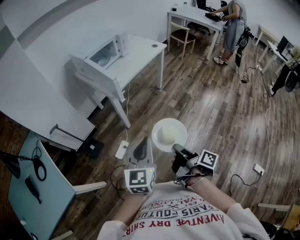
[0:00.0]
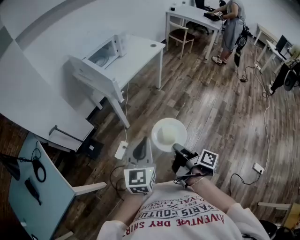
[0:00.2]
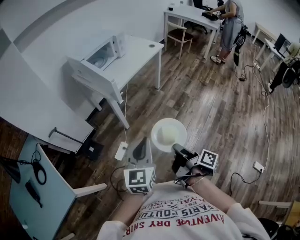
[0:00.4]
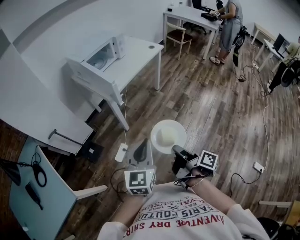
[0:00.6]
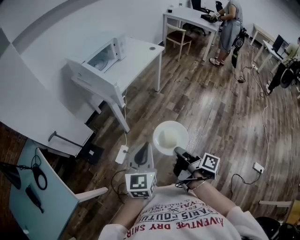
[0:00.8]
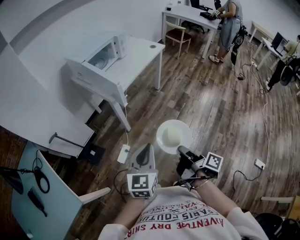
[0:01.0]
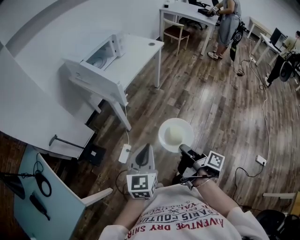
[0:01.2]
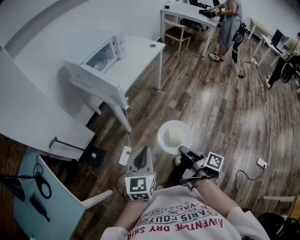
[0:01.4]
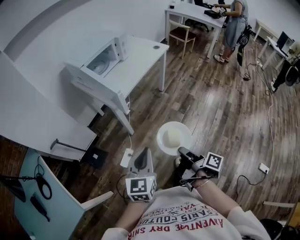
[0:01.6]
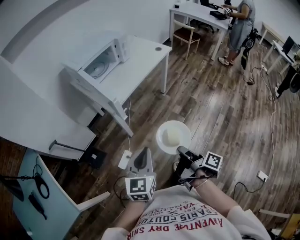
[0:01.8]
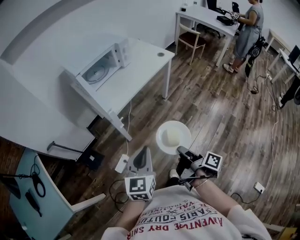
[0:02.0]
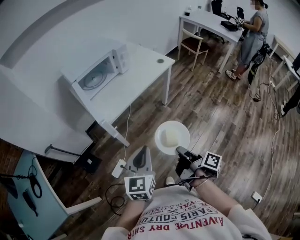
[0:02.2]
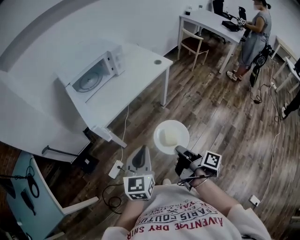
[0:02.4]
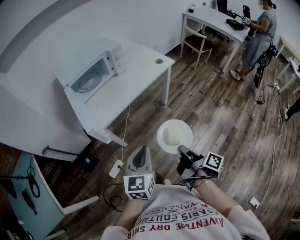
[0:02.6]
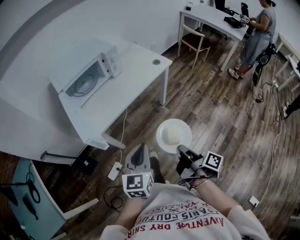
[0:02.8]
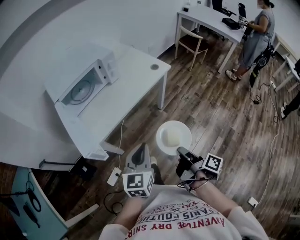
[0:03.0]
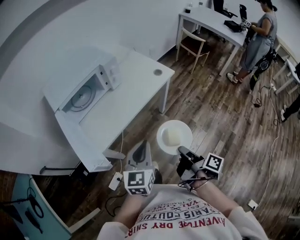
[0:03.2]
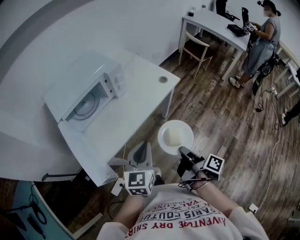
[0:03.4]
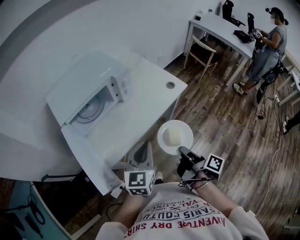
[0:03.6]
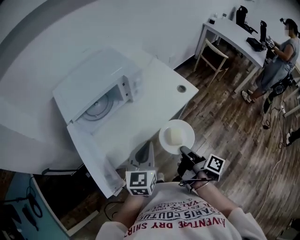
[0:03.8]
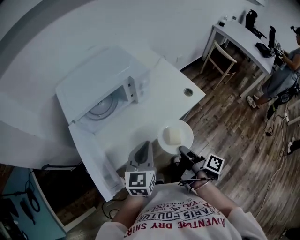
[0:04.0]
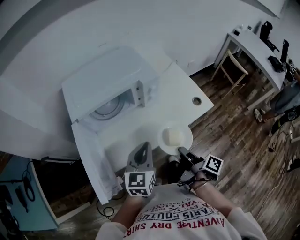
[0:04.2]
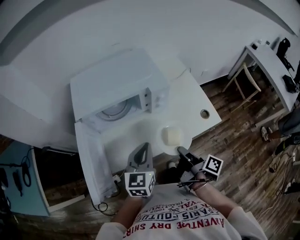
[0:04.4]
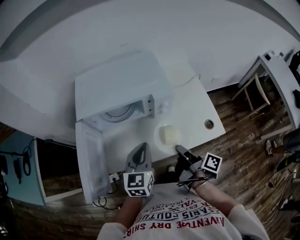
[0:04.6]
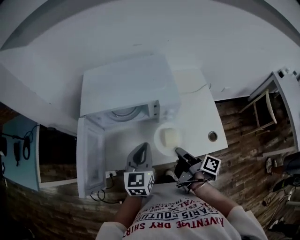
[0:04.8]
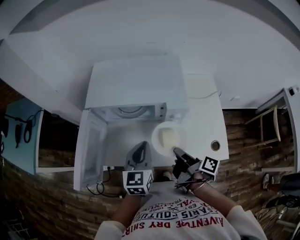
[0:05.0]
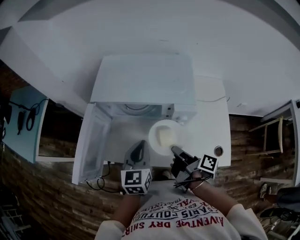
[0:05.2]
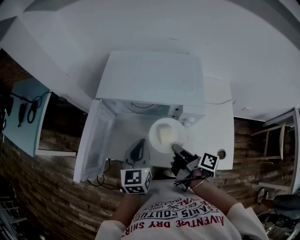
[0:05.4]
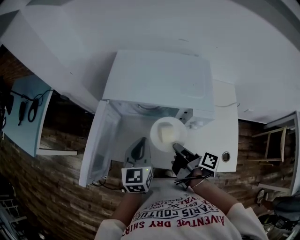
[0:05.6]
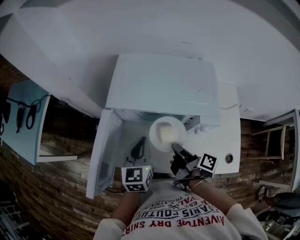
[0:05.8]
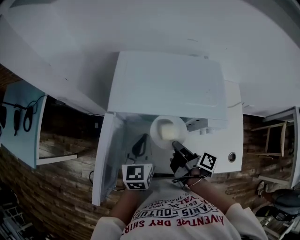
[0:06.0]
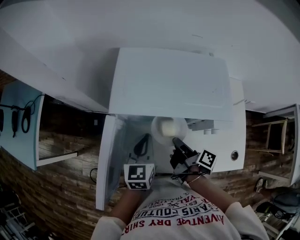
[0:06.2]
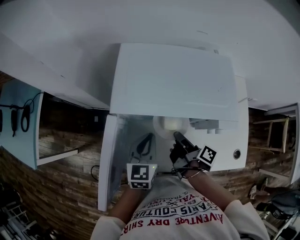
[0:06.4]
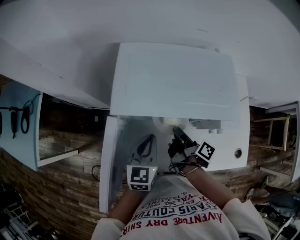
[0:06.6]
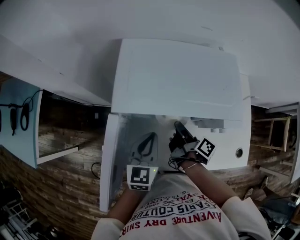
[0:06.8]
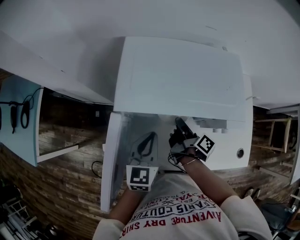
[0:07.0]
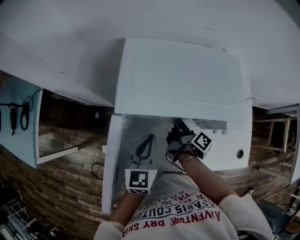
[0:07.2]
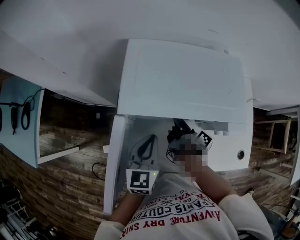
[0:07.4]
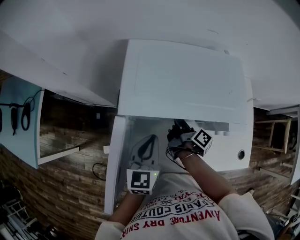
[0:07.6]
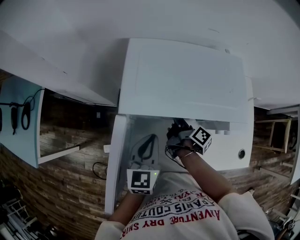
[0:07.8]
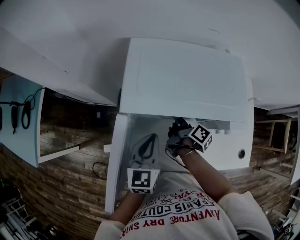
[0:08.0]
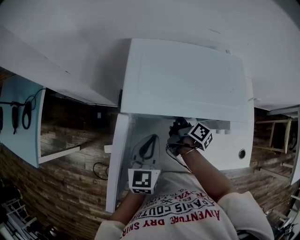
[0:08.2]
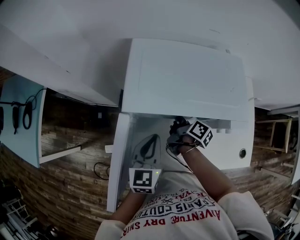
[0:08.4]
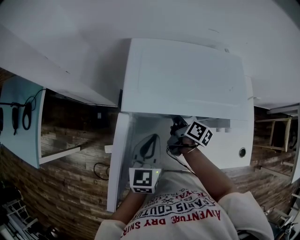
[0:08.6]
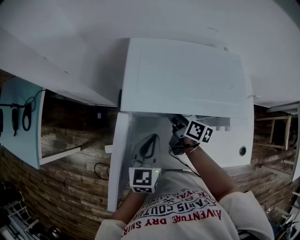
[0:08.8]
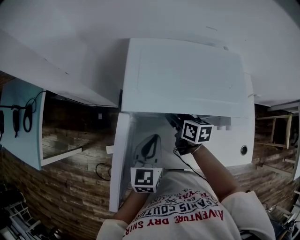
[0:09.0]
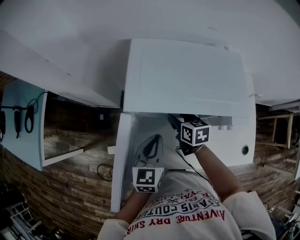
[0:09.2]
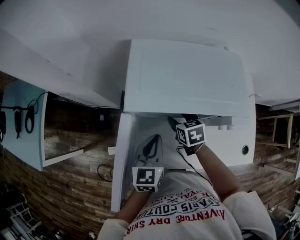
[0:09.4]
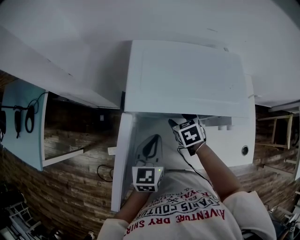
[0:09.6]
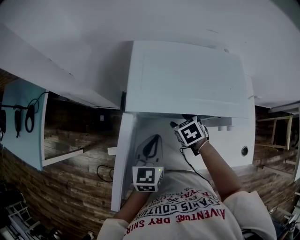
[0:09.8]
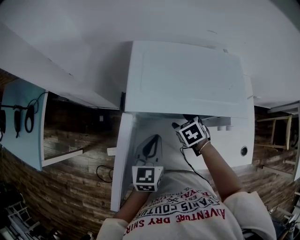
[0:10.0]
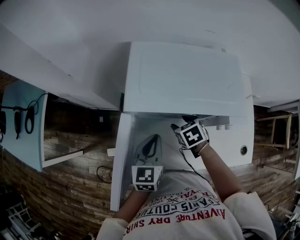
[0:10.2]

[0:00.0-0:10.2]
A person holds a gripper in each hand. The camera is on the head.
0:00.0 to 0:01.4: The left gripper moves about 10 cm.
0:01.4 to 0:03.0: The left gripper ends up approximately 40 cm from where it was.
0:03.0 to 0:04.4: The left gripper shifts by roughly 30 cm, and turns by some 20 degrees.
0:04.4 to 0:05.8: The left gripper shifts by about 15 cm, and changes its angle by some 30 degrees.
0:05.8 to 0:07.2: The left gripper changes place by roughly 5 cm.

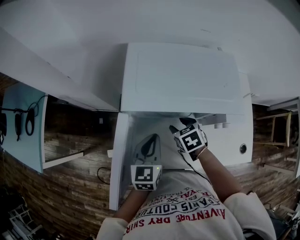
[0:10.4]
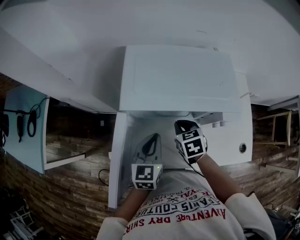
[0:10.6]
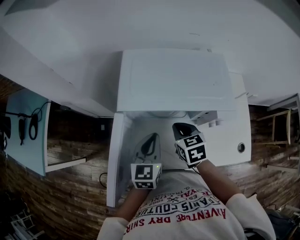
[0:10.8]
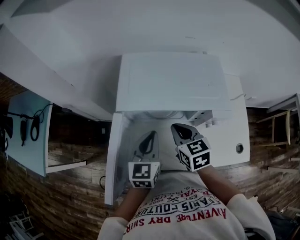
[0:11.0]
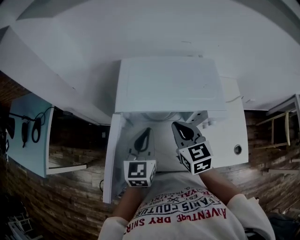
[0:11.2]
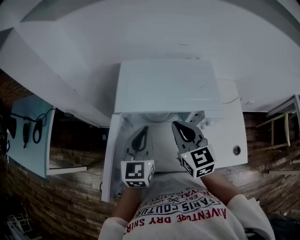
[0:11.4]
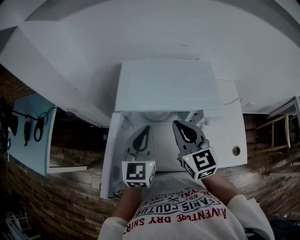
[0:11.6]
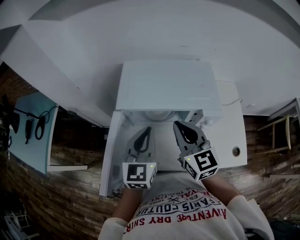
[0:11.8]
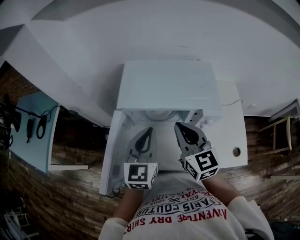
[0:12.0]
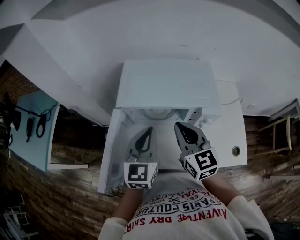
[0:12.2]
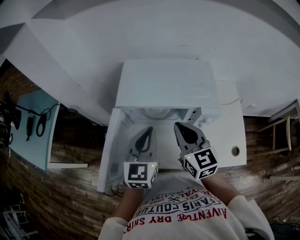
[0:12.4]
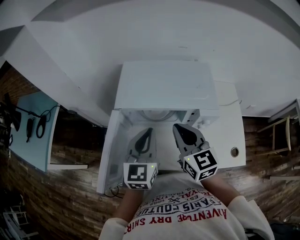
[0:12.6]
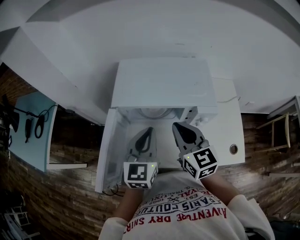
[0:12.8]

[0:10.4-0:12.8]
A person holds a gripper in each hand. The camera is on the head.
0:10.4 to 0:11.6: The left gripper heads upward, covering approximately 10 cm.

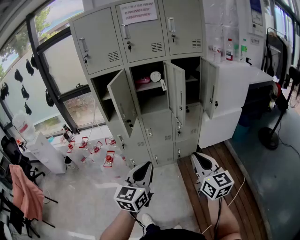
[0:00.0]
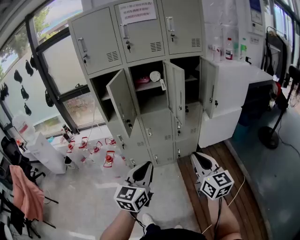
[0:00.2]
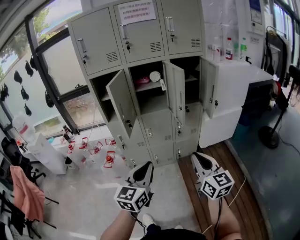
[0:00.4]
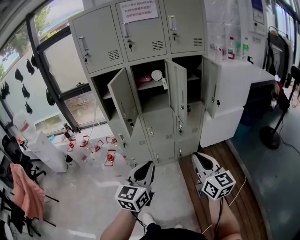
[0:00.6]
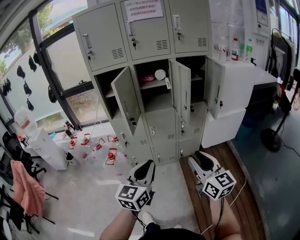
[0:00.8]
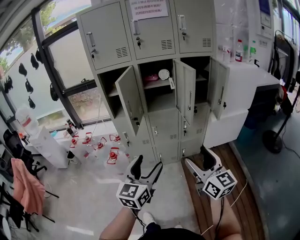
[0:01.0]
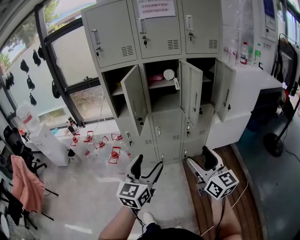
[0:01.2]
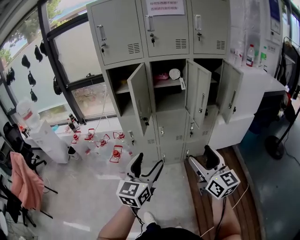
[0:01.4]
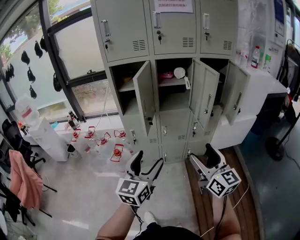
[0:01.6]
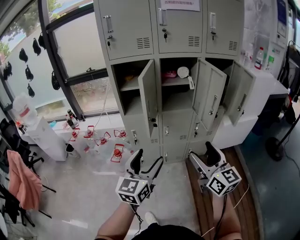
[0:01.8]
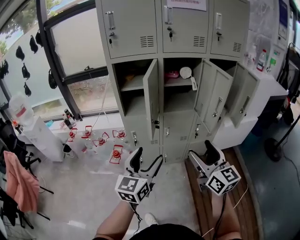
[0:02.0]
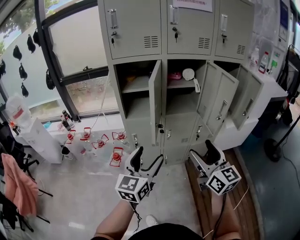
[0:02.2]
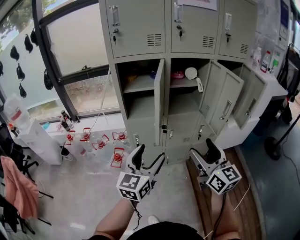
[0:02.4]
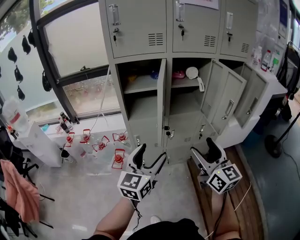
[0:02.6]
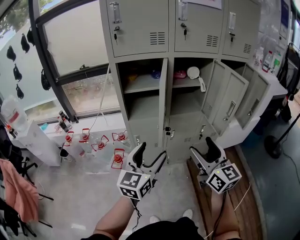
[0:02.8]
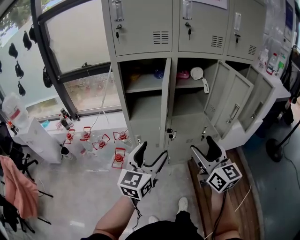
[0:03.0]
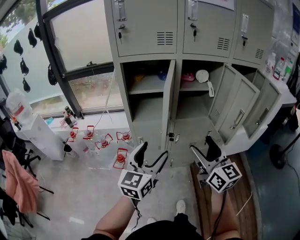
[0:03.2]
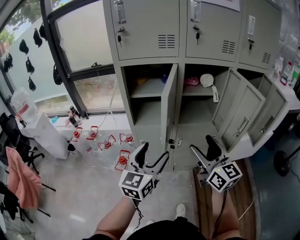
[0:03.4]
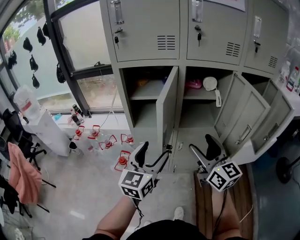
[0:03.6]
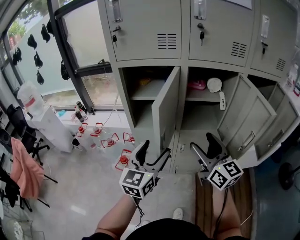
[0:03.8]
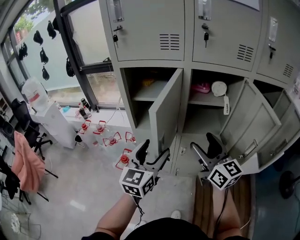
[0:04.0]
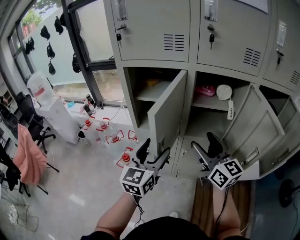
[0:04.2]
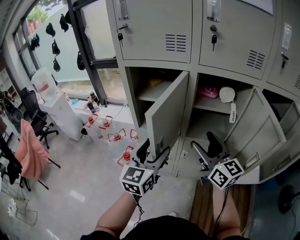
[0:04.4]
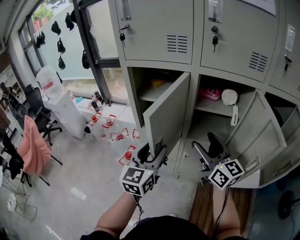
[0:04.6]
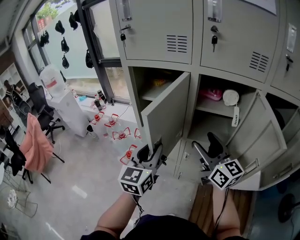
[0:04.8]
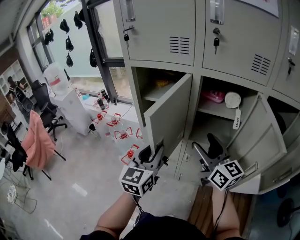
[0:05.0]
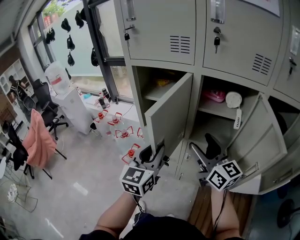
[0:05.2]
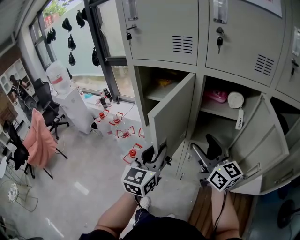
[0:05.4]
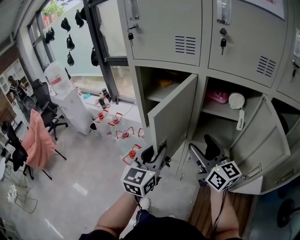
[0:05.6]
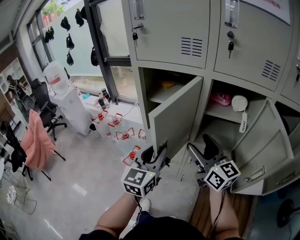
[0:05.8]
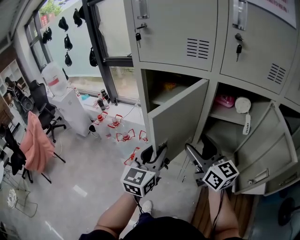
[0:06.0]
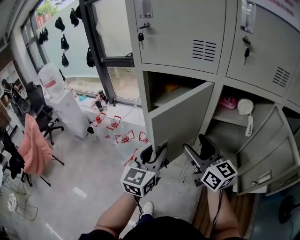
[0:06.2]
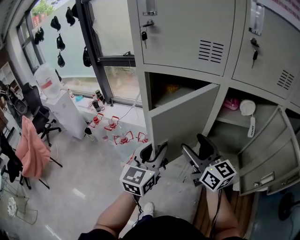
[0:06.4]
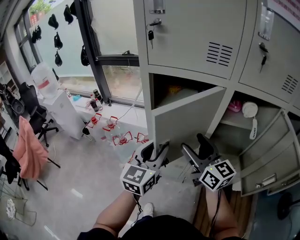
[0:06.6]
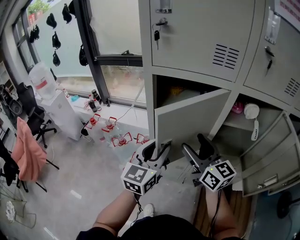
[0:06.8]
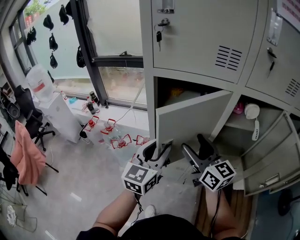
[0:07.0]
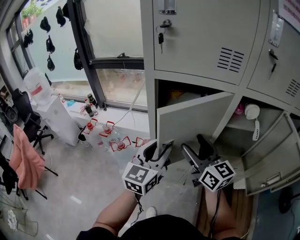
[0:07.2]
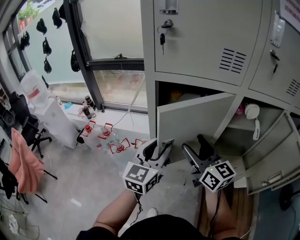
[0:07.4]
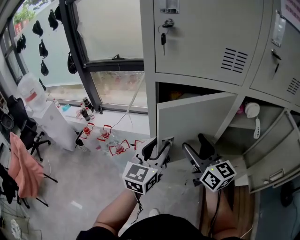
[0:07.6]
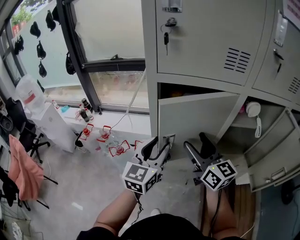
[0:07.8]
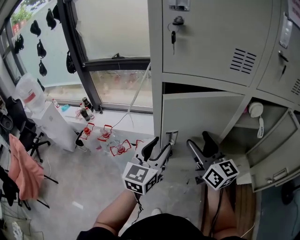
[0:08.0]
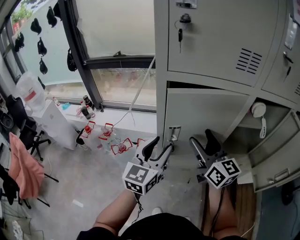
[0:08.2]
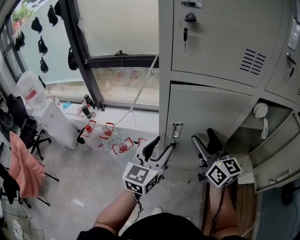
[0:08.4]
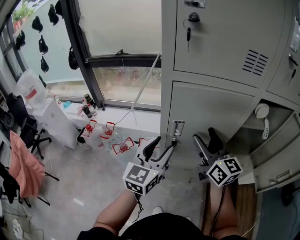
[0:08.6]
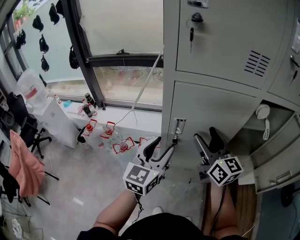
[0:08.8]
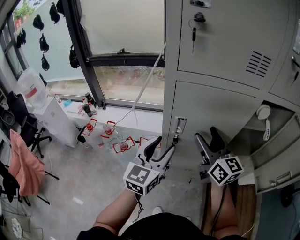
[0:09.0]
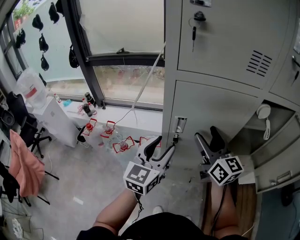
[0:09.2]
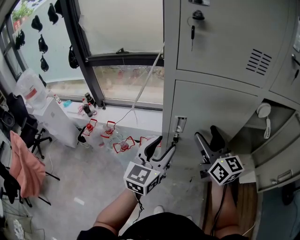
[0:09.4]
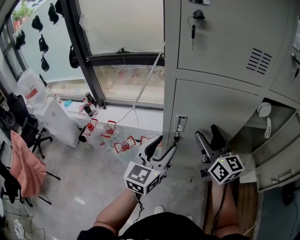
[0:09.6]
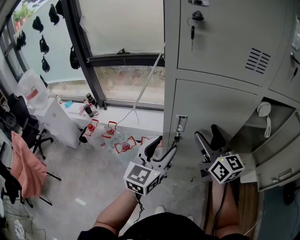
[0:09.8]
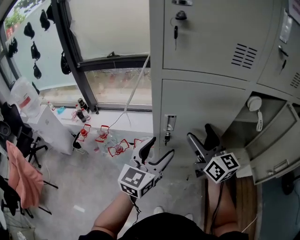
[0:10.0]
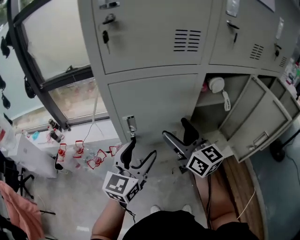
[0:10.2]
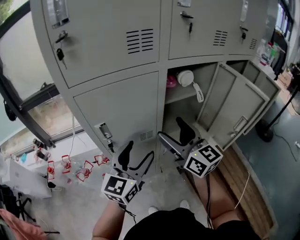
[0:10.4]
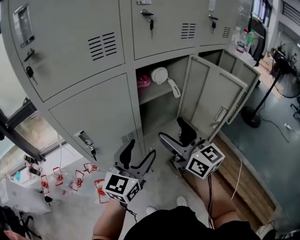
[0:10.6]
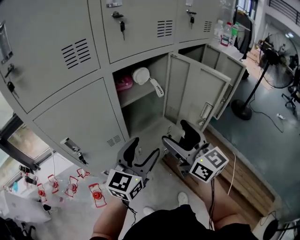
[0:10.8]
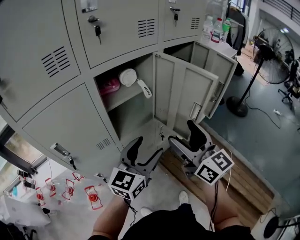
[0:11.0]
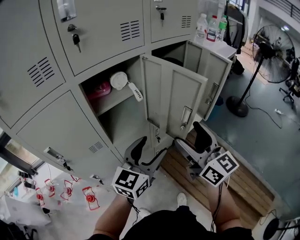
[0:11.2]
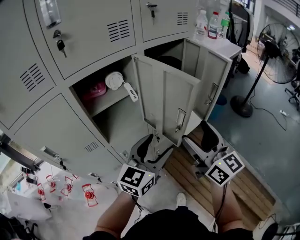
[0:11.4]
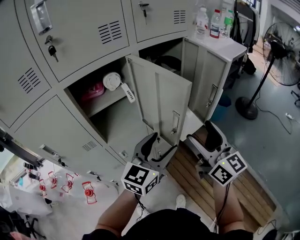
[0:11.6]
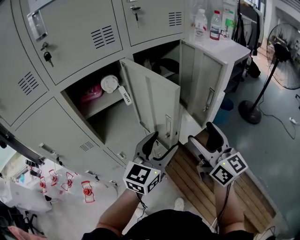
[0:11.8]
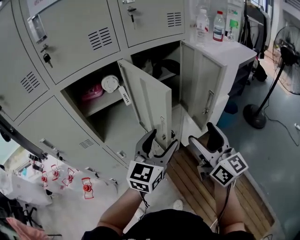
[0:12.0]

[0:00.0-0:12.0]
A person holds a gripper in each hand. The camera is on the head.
0:00.0 to 0:01.6: Both grippers move to the left and forward, about 15 cm. The right gripper opens up, while the left gripper opens up.
0:01.6 to 0:03.0: Both grippers travel together forward and to the left, some 20 cm.
0:03.0 to 0:04.4: The right gripper goes roughly 20 cm forward, and rotates approximately 20 degrees; the left gripper heads forward and to the right, covering approximately 15 cm, and changes its angle by about 20 degrees.
0:04.4 to 0:06.0: The right gripper travels to the left by some 5 cm. The left gripper closes.
0:06.0 to 0:07.6: The right gripper shifts approximately 15 cm to the left and forward. Meanwhile the left gripper is displaced forward and to the left by about 15 cm.
0:07.6 to 0:09.0: The grippers stay close to where they were, moving slightly.
0:09.0 to 0:10.4: The right gripper is displaced to the right and backward by some 15 cm, while the left gripper is displaced to the right by about 15 cm, and rotates approximately 20 degrees.
0:10.4 to 0:12.0: The pair of grippers is taken to the right, approximately 50 cm.
